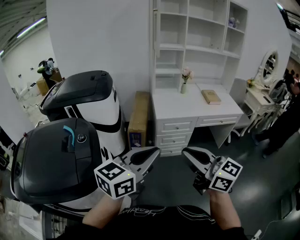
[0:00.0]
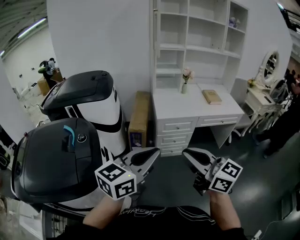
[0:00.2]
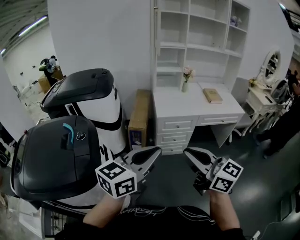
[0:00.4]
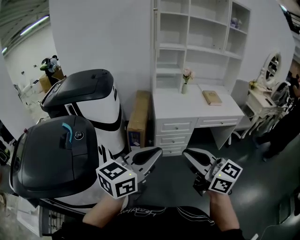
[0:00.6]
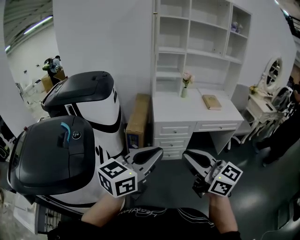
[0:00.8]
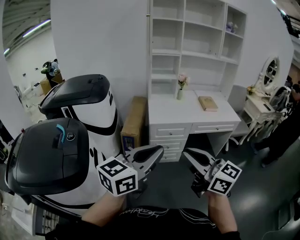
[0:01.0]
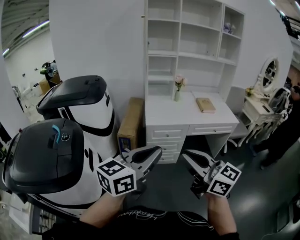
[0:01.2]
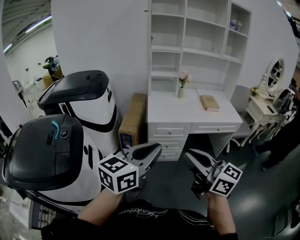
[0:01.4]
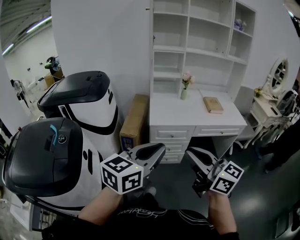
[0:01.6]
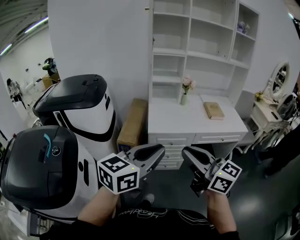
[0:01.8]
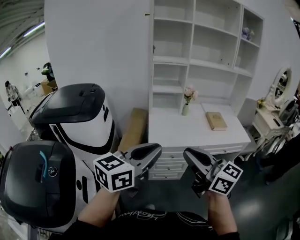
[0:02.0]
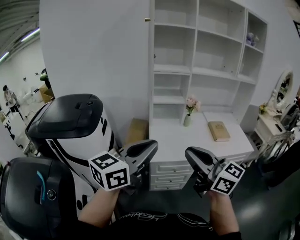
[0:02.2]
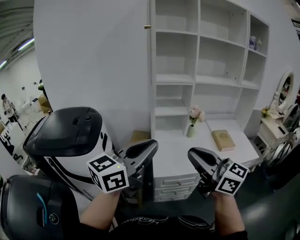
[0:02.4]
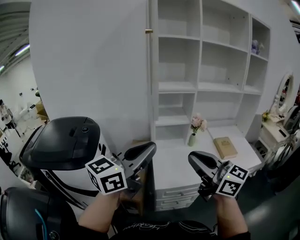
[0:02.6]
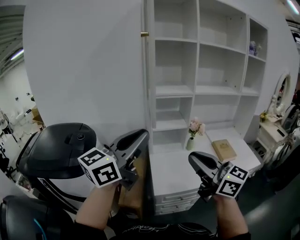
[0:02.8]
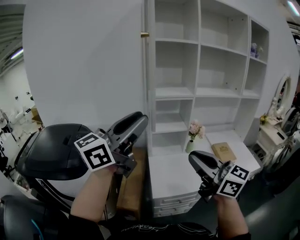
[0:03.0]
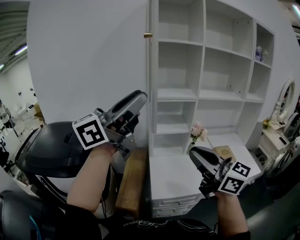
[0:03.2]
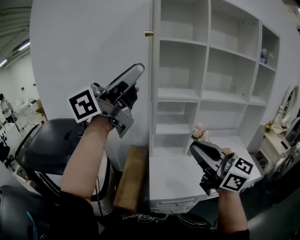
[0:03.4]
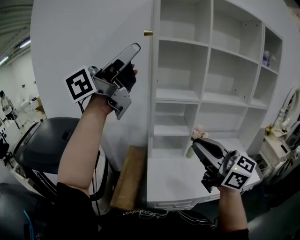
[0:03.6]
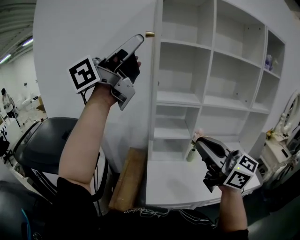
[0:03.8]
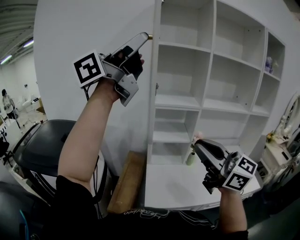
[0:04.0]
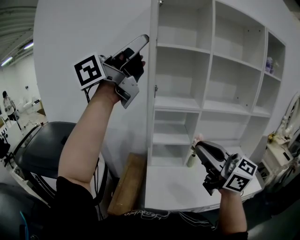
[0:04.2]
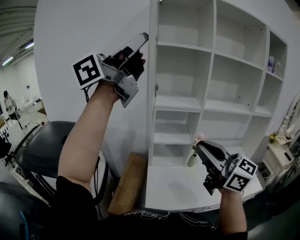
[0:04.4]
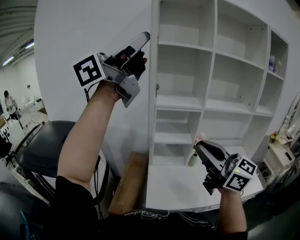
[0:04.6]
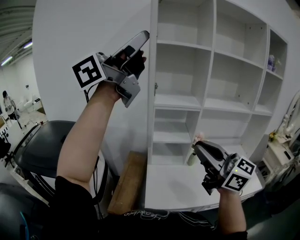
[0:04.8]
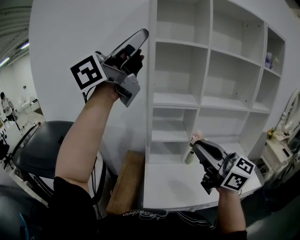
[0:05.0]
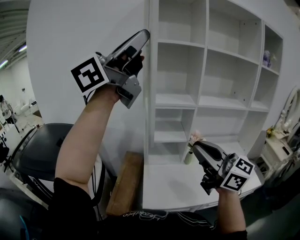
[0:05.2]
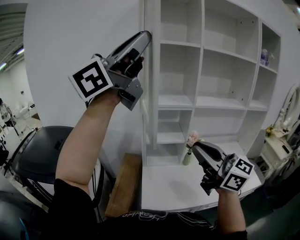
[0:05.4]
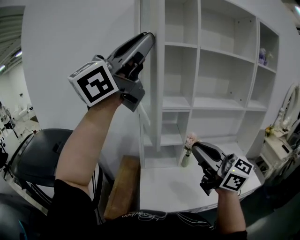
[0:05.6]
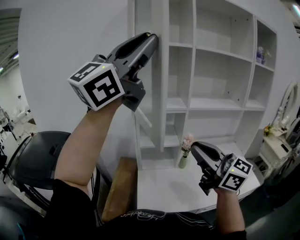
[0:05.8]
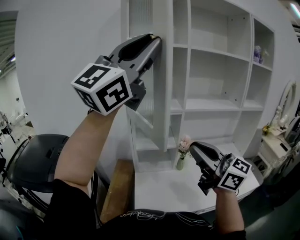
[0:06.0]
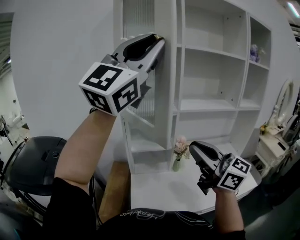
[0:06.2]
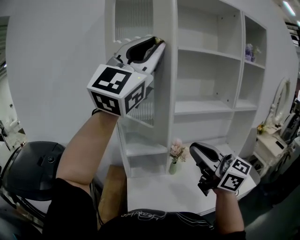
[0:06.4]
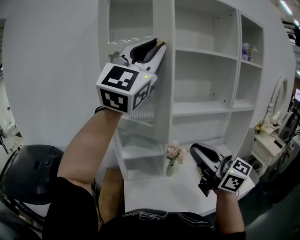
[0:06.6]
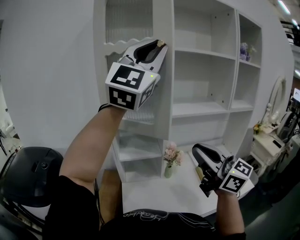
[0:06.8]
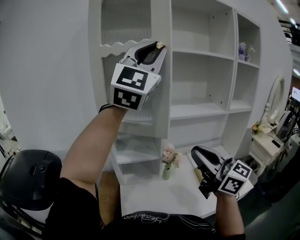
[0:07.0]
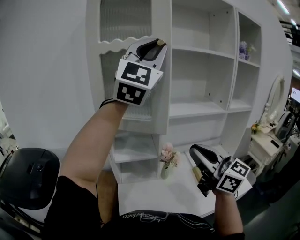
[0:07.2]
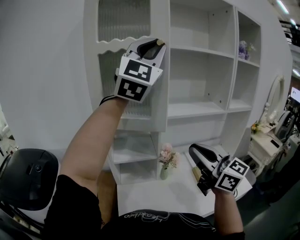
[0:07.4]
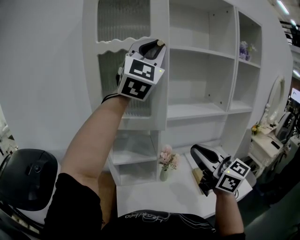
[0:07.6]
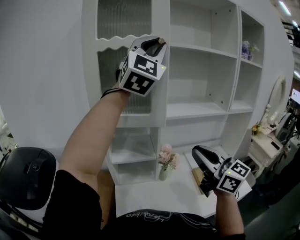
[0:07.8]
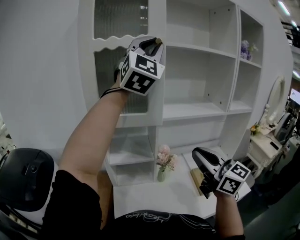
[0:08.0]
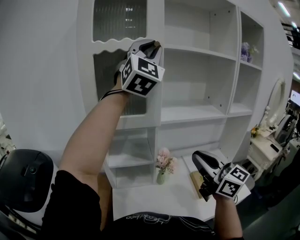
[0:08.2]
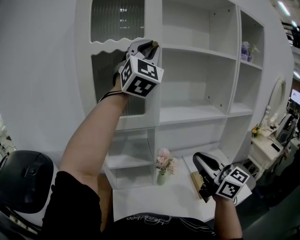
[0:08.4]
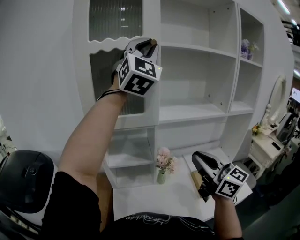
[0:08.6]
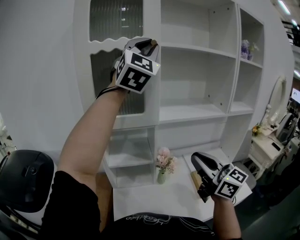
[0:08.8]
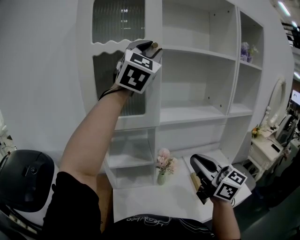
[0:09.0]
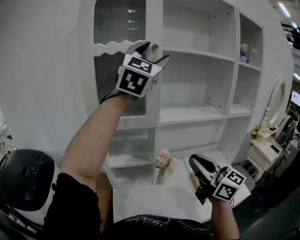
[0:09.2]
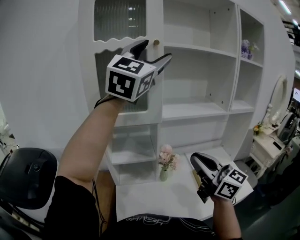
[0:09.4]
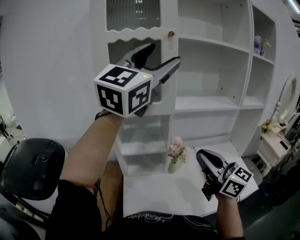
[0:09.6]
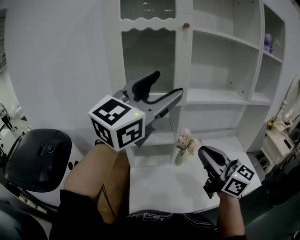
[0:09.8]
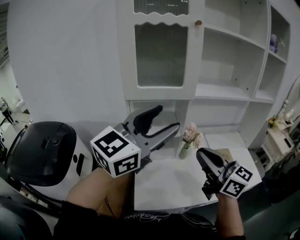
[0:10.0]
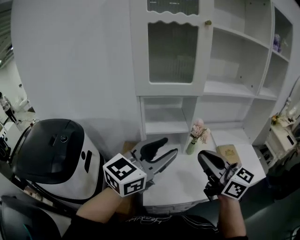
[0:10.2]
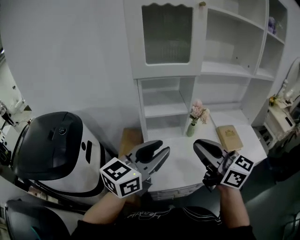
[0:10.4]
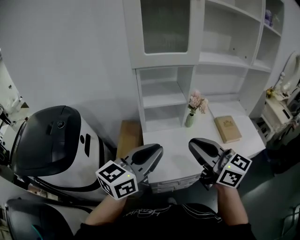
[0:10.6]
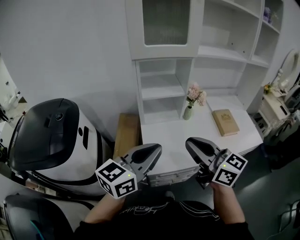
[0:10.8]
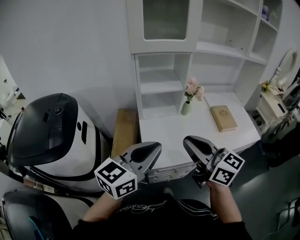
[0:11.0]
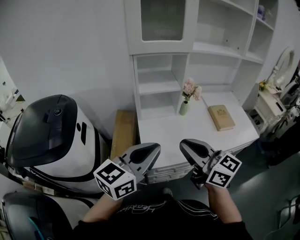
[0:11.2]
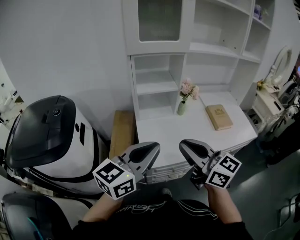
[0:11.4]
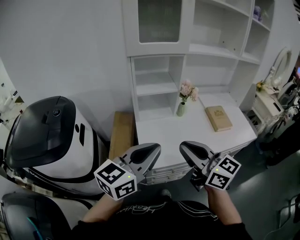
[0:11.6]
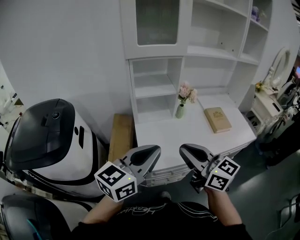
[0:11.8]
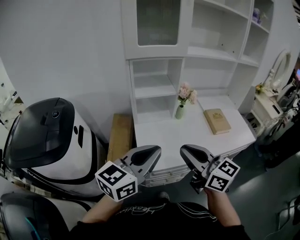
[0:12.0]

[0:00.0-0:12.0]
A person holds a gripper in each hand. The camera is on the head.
0:00.0 to 0:01.6: The two grippers go about 15 cm to the right and forward.
0:01.6 to 0:03.0: Both grippers are carried forward, some 50 cm. The left gripper moves upward, roughly 20 cm, and turns by approximately 30 degrees.
0:03.0 to 0:04.4: The left gripper is displaced upward by some 20 cm, and rotates some 20 degrees, while the right gripper travels forward and upward by approximately 10 cm.
0:04.4 to 0:06.0: The right gripper is displaced to the right and forward by about 10 cm. The left gripper is displaced to the right by roughly 15 cm, and rotates around the line of its fingers by about 40 degrees, clockwise from behind.
0:06.0 to 0:07.6: The right gripper travels to the right and forward by about 15 cm, while the left gripper heads forward and to the right, covering approximately 25 cm, and swivels about 30 degrees.
0:07.6 to 0:09.0: The left gripper heads forward, covering roughly 5 cm.
0:09.0 to 0:10.4: The right gripper heads to the left and backward, covering approximately 20 cm. The left gripper shifts about 50 cm downward, backward and to the left, twists roughly 60 degrees counterclockwise, seen from behind, and opens, then closes again.
0:10.4 to 0:12.0: The left gripper shifts approximately 10 cm backward, and closes up. Meanwhile the right gripper travels backward and downward by roughly 15 cm.

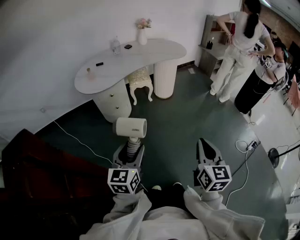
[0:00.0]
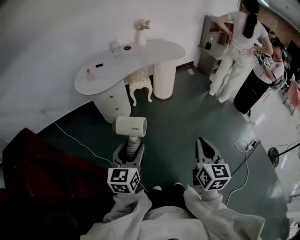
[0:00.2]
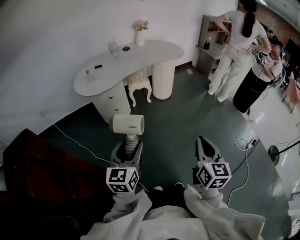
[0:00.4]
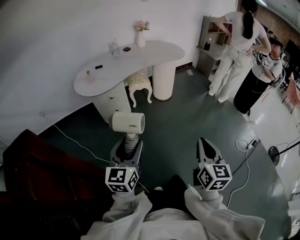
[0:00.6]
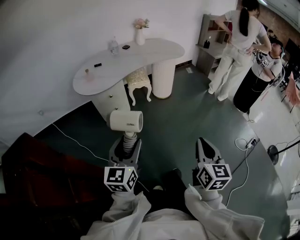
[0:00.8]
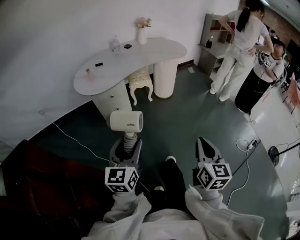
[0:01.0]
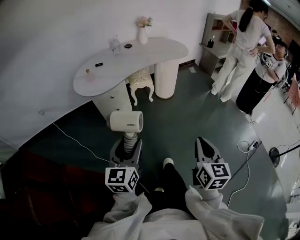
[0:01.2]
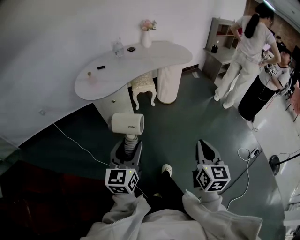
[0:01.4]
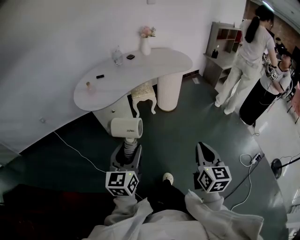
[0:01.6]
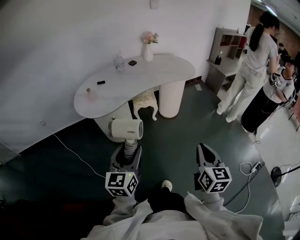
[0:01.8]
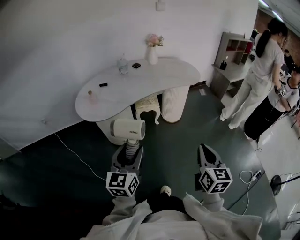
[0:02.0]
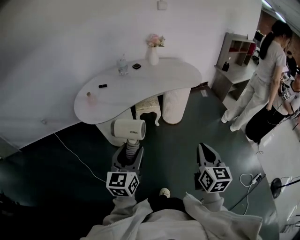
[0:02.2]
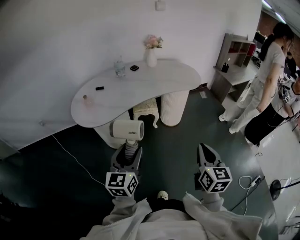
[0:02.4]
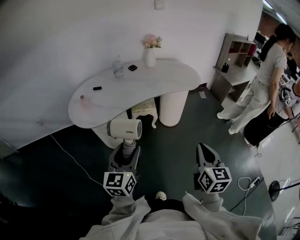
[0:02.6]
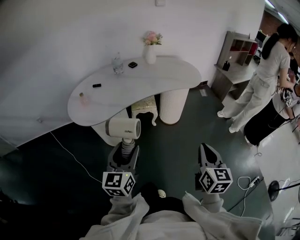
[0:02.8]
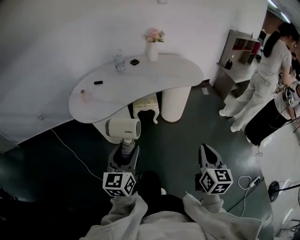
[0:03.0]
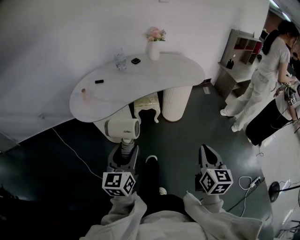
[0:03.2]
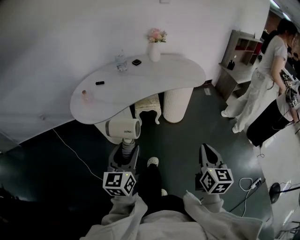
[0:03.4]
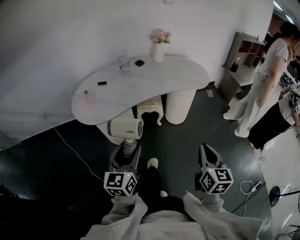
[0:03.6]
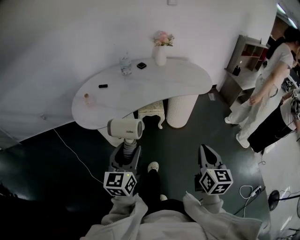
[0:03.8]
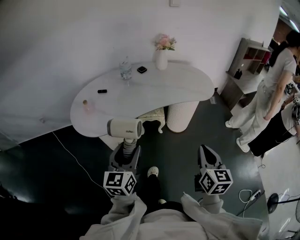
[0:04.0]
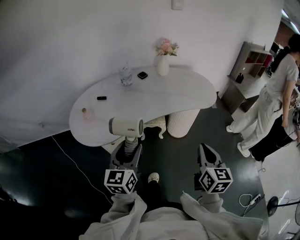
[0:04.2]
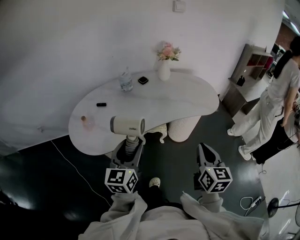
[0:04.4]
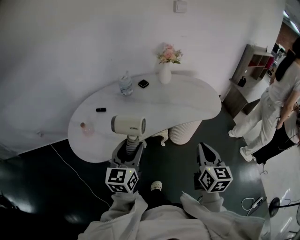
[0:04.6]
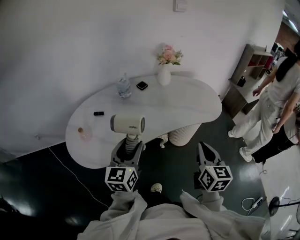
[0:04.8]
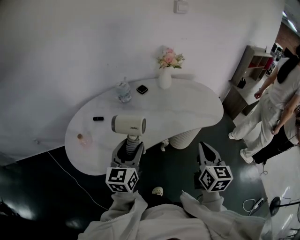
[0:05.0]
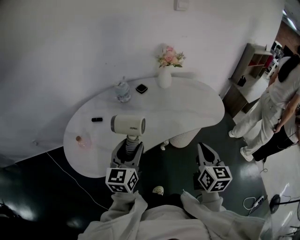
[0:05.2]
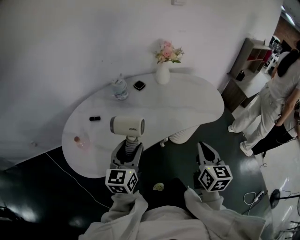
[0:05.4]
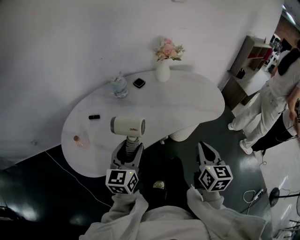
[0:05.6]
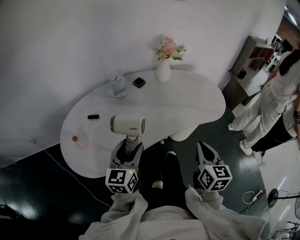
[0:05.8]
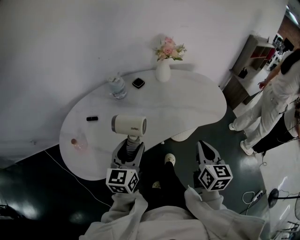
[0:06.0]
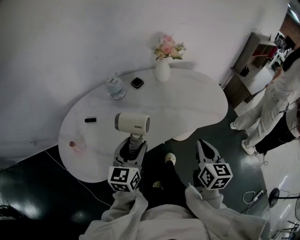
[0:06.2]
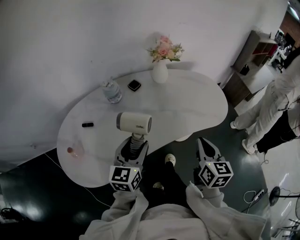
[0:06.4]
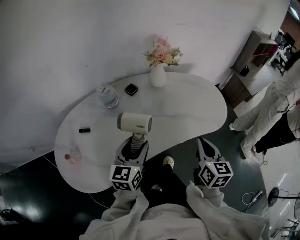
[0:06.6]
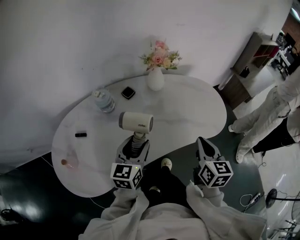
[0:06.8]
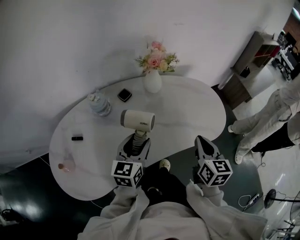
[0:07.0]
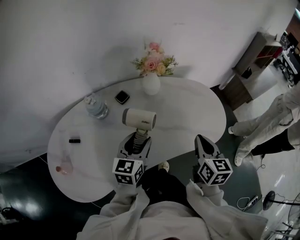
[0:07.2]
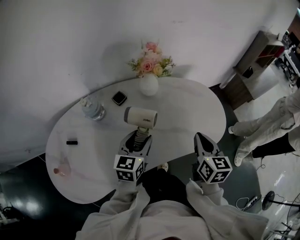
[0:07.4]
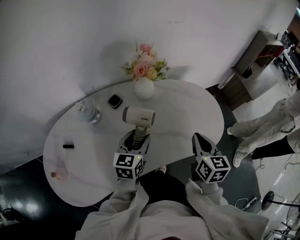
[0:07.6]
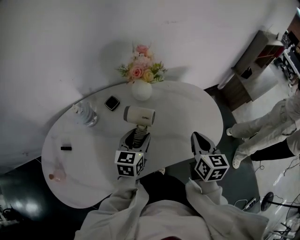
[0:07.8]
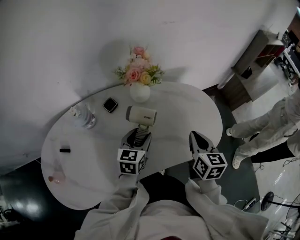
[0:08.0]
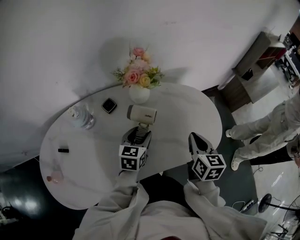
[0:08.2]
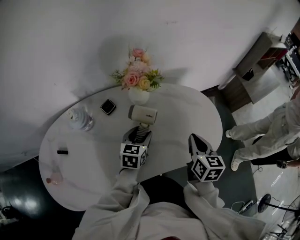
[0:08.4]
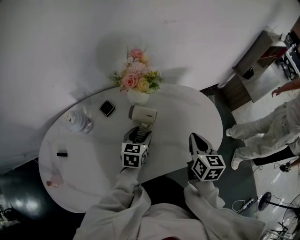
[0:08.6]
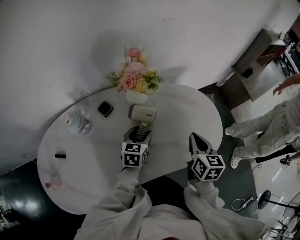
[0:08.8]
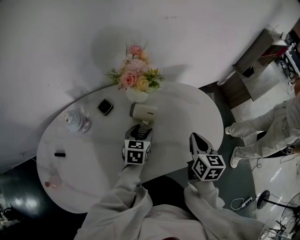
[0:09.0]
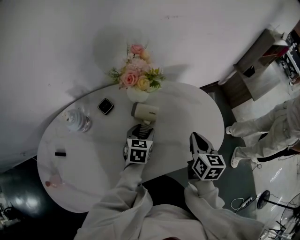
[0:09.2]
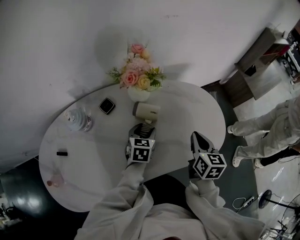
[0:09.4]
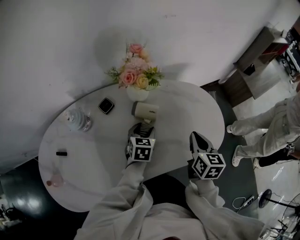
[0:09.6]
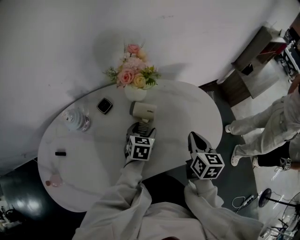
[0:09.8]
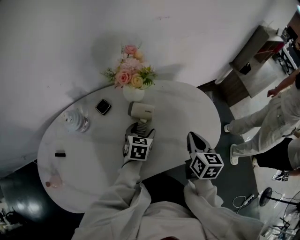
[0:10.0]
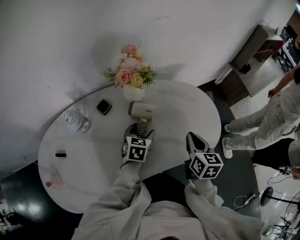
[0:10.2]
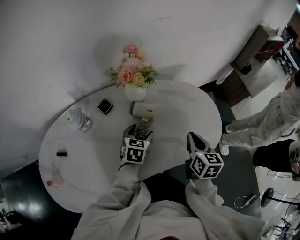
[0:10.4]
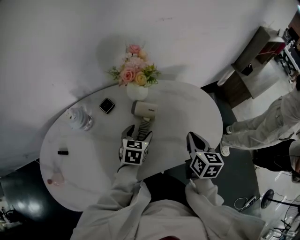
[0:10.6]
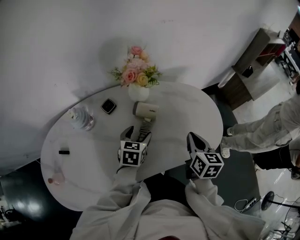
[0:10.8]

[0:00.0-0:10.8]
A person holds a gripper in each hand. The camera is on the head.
0:00.0 to 0:01.6: Both grippers move forward, roughly 15 cm.
0:01.6 to 0:03.0: The grippers both shift forward by about 15 cm.
0:03.0 to 0:04.6: The grippers both shift forward by approximately 25 cm.
0:04.6 to 0:06.2: The right gripper shifts roughly 15 cm forward and downward. The left gripper is displaced forward by approximately 15 cm.
0:06.2 to 0:07.8: The right gripper travels forward by roughly 25 cm, while the left gripper moves forward and to the right, approximately 25 cm.
0:07.8 to 0:09.2: The left gripper moves downward and forward, about 10 cm; the right gripper changes place by some 5 cm.
0:09.2 to 0:10.8: The grippers make only small movements.

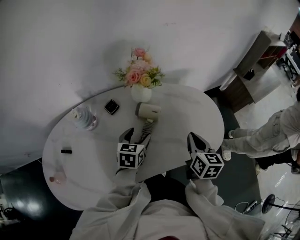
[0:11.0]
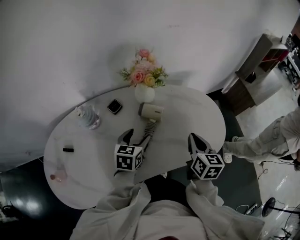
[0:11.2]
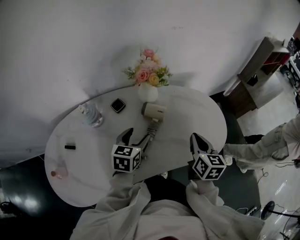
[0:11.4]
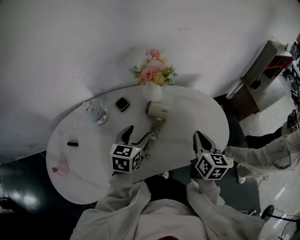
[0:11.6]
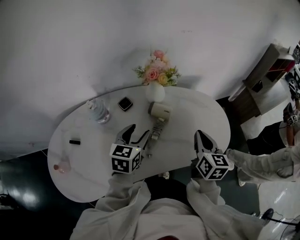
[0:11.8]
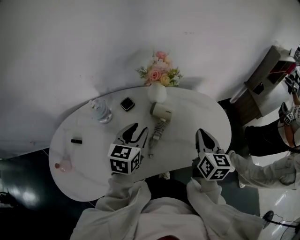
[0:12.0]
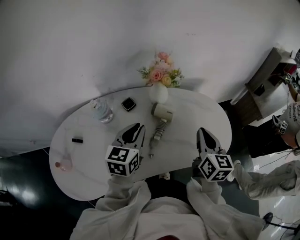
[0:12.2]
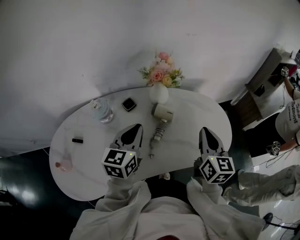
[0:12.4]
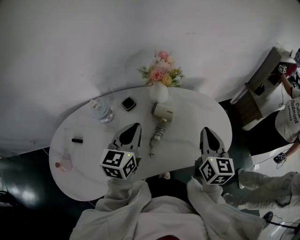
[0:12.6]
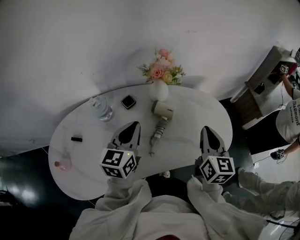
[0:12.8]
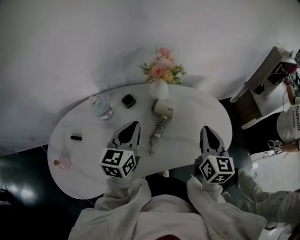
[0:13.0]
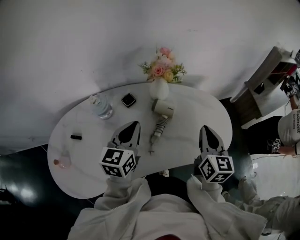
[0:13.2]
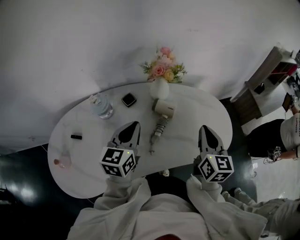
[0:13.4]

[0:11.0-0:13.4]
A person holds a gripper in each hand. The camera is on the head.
0:11.0 to 0:12.2: The right gripper goes roughly 10 cm upward, while the left gripper travels upward by some 15 cm, and closes its fingers.
0:12.2 to 0:13.4: The grippers make only small movements.
